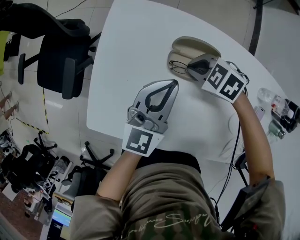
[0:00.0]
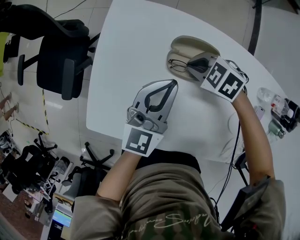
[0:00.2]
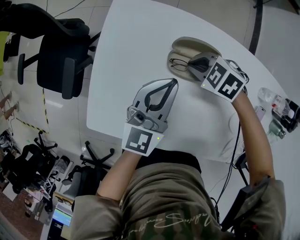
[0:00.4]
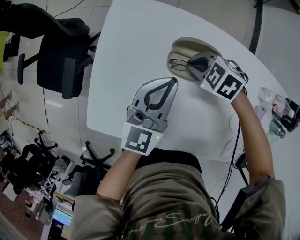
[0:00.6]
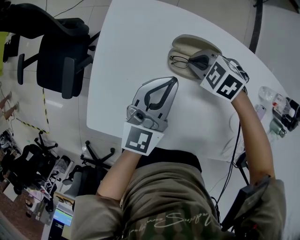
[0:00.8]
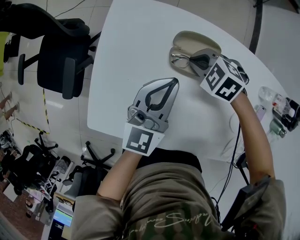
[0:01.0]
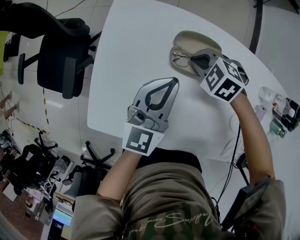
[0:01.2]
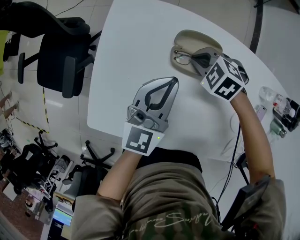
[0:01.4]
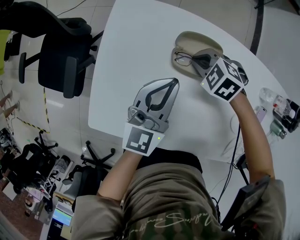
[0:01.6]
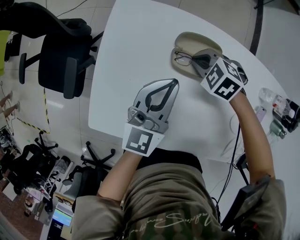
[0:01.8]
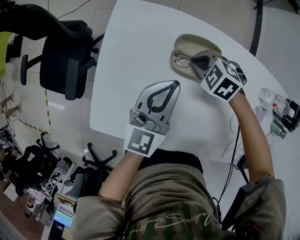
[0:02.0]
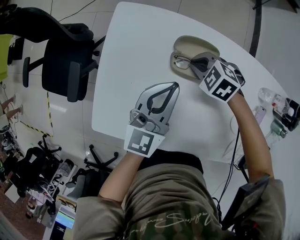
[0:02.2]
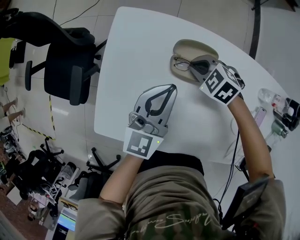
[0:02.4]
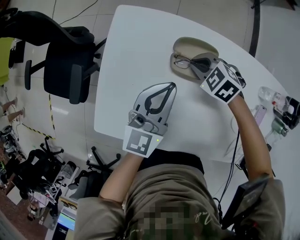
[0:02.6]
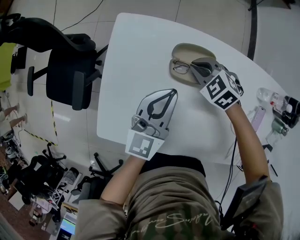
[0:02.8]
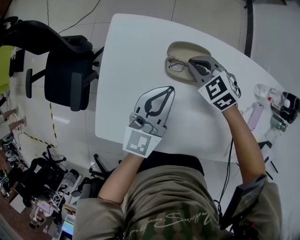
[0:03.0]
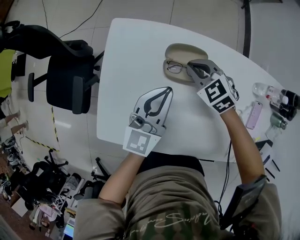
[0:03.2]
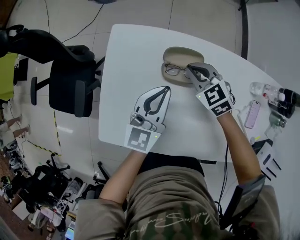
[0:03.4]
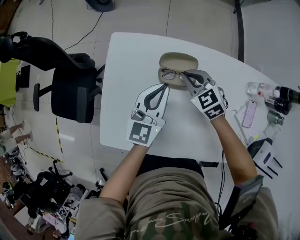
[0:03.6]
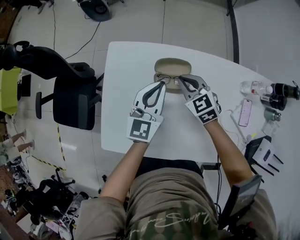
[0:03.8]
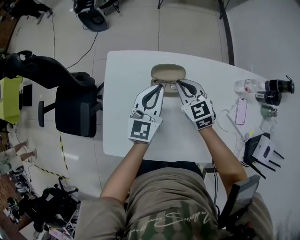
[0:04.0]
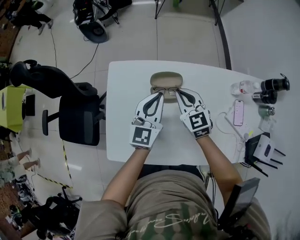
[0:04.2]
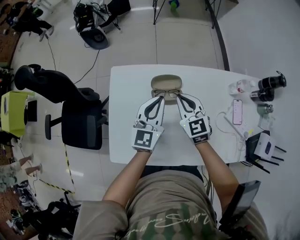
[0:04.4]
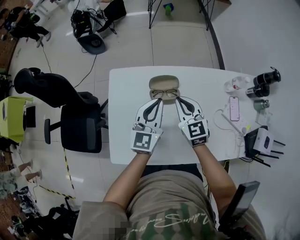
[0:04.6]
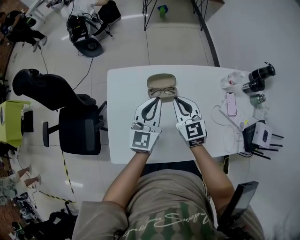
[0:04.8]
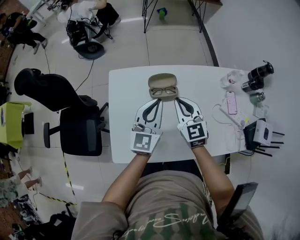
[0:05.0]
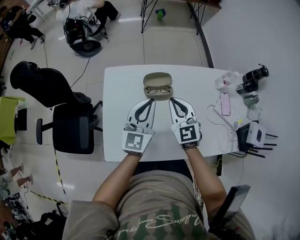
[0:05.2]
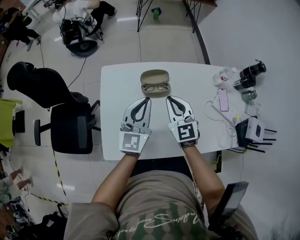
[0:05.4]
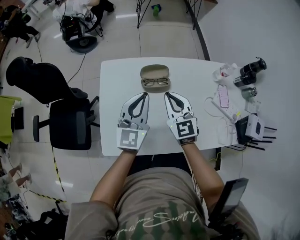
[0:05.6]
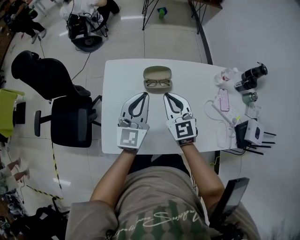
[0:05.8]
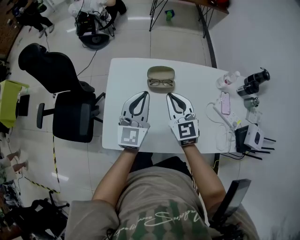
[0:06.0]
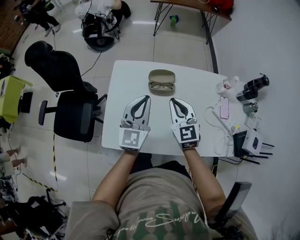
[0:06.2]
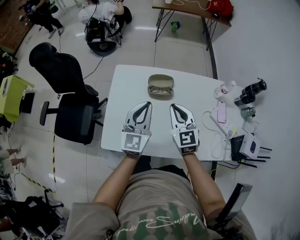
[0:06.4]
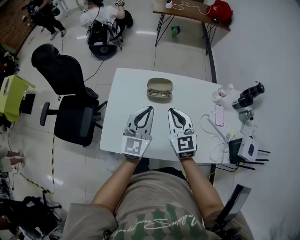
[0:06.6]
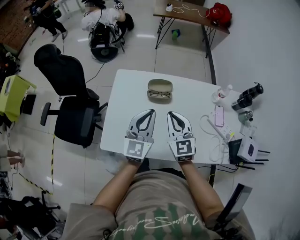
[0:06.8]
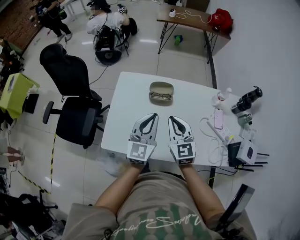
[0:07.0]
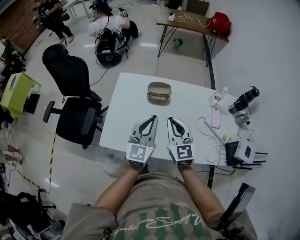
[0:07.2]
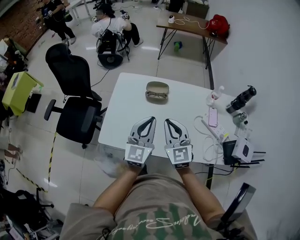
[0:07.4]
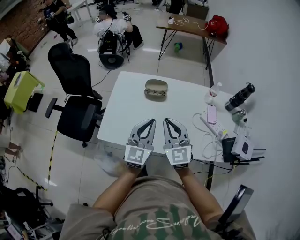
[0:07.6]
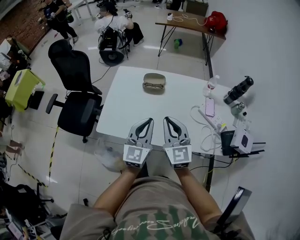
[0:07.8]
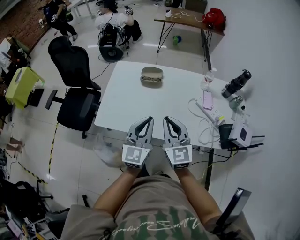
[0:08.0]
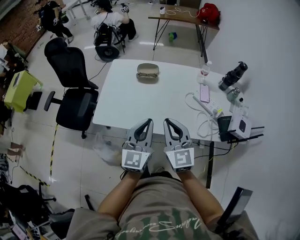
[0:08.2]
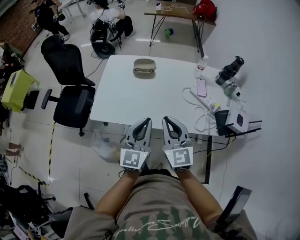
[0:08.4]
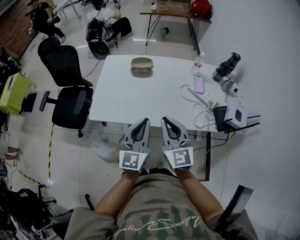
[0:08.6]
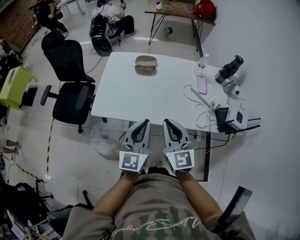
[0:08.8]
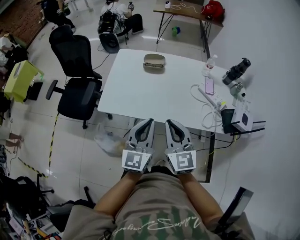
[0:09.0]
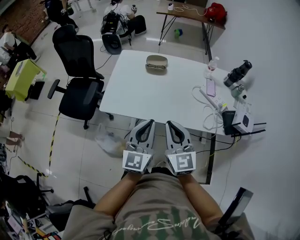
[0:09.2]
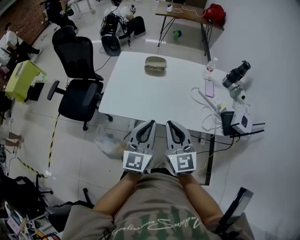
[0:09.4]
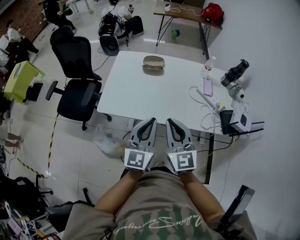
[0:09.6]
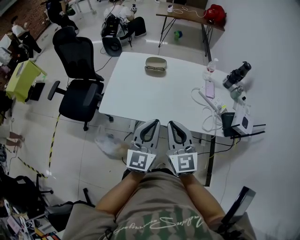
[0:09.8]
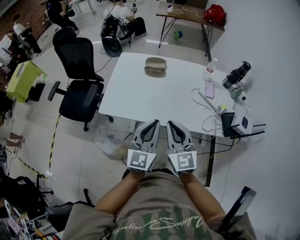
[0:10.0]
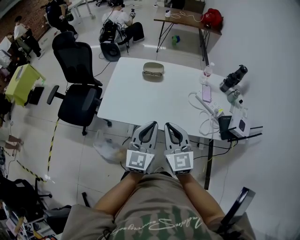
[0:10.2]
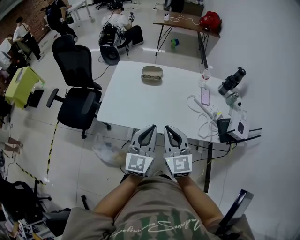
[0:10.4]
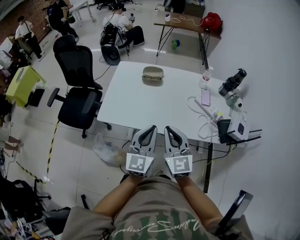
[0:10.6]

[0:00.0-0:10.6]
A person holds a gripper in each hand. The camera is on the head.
0:00.0 to 0:01.6: The grippers stay close to where they were, moving slightly.
0:01.6 to 0:03.0: The right gripper moves upward, about 5 cm, and rotates some 20 degrees.
0:03.0 to 0:04.6: The left gripper shifts some 10 cm upward. Meanwhile the right gripper shifts some 15 cm upward and backward, and swivels roughly 50 degrees.
0:04.6 to 0:06.0: The right gripper heads backward and upward, covering some 10 cm. Meanwhile the left gripper shifts approximately 5 cm backward.
0:06.0 to 0:07.6: The right gripper travels backward by about 20 cm. The left gripper goes about 20 cm backward and to the right.
0:07.6 to 0:09.0: Both grippers move backward, some 15 cm.
0:09.0 to 0:10.6: The grippers make only small movements.

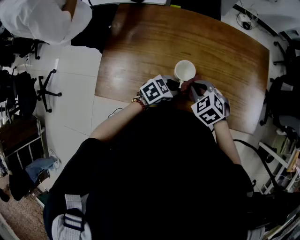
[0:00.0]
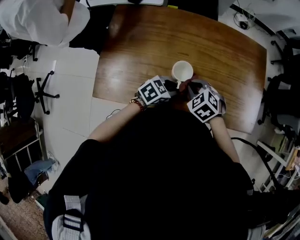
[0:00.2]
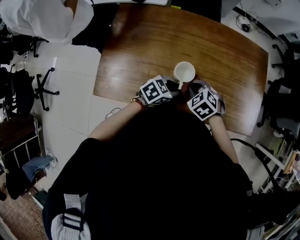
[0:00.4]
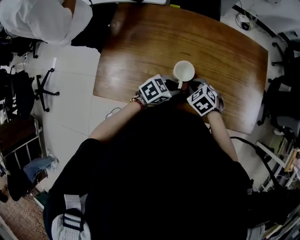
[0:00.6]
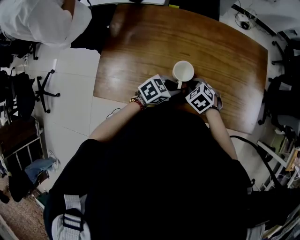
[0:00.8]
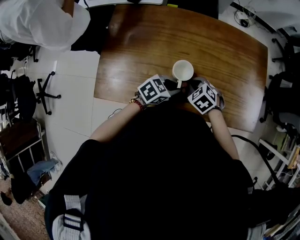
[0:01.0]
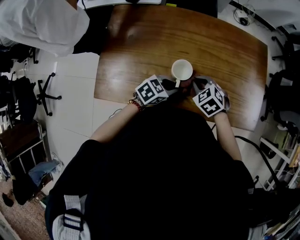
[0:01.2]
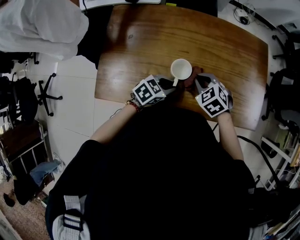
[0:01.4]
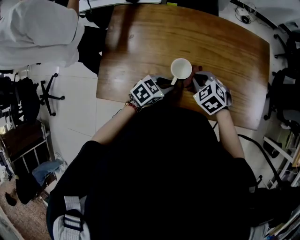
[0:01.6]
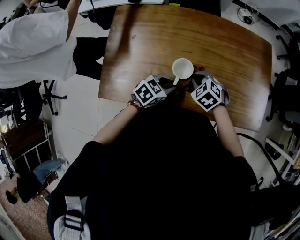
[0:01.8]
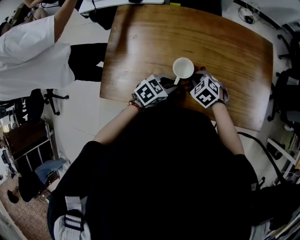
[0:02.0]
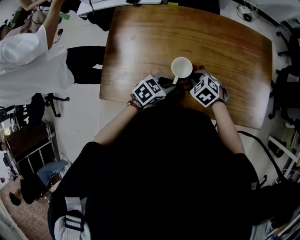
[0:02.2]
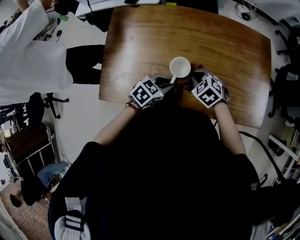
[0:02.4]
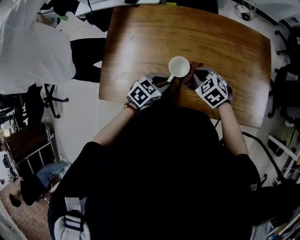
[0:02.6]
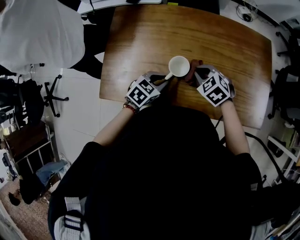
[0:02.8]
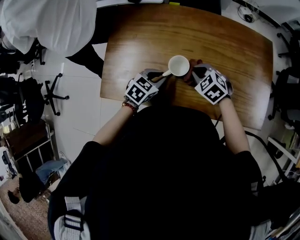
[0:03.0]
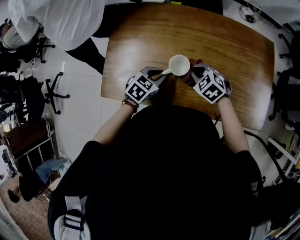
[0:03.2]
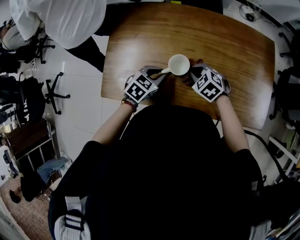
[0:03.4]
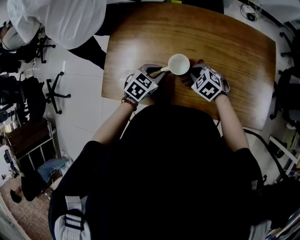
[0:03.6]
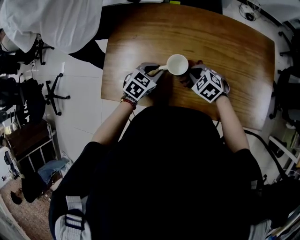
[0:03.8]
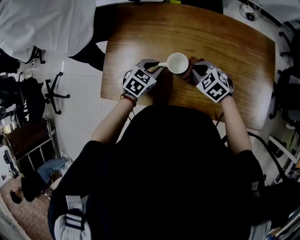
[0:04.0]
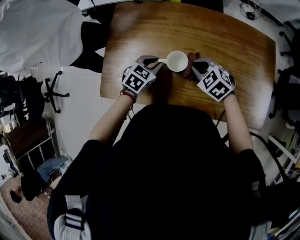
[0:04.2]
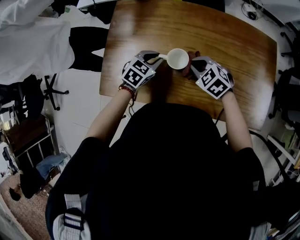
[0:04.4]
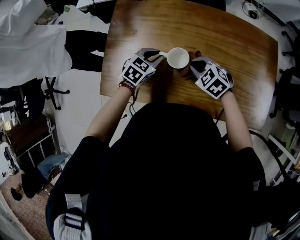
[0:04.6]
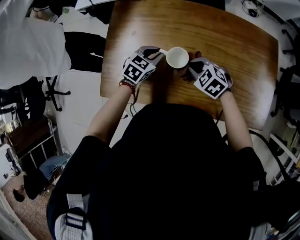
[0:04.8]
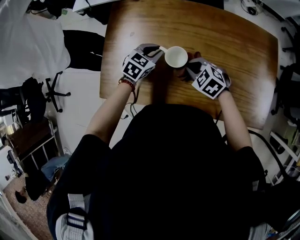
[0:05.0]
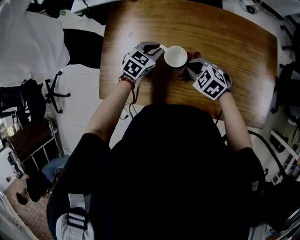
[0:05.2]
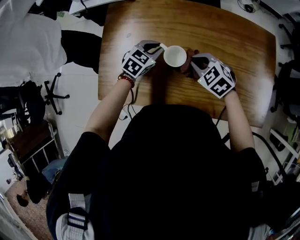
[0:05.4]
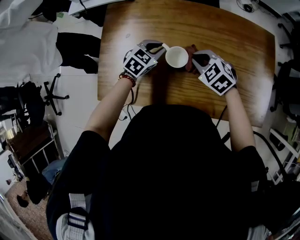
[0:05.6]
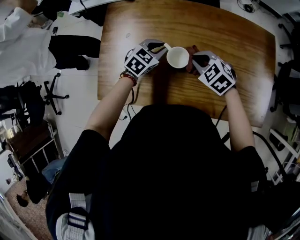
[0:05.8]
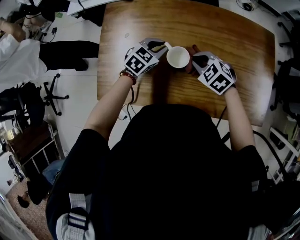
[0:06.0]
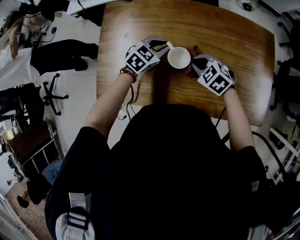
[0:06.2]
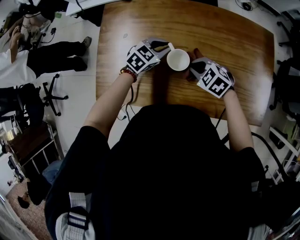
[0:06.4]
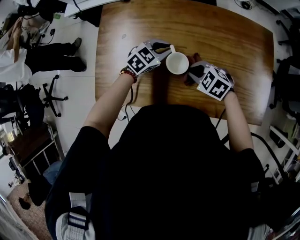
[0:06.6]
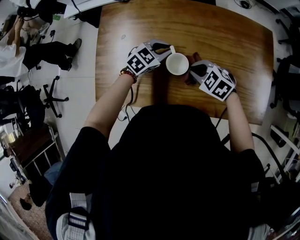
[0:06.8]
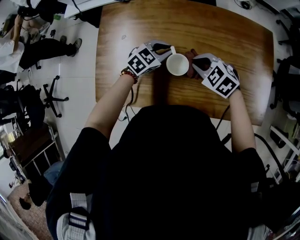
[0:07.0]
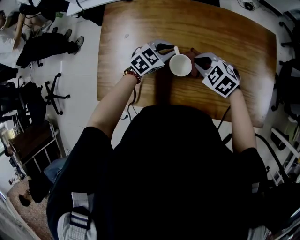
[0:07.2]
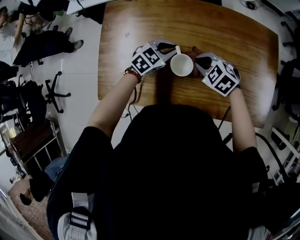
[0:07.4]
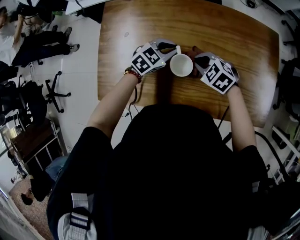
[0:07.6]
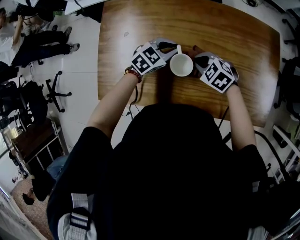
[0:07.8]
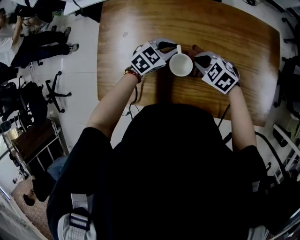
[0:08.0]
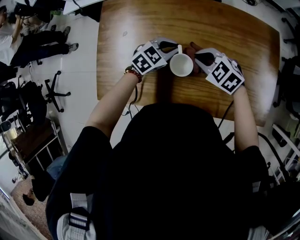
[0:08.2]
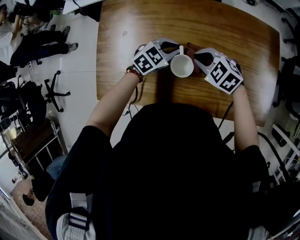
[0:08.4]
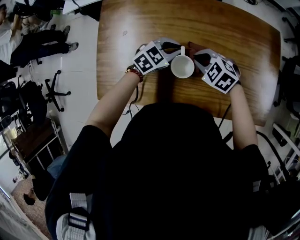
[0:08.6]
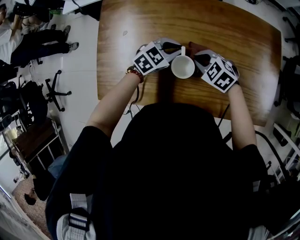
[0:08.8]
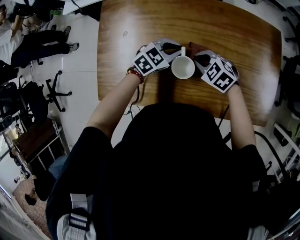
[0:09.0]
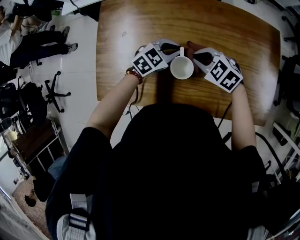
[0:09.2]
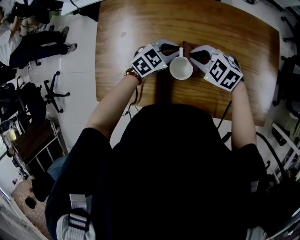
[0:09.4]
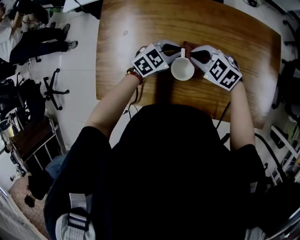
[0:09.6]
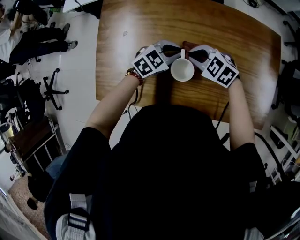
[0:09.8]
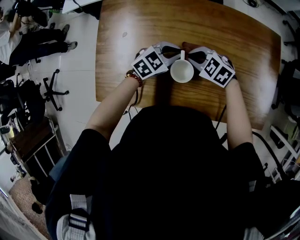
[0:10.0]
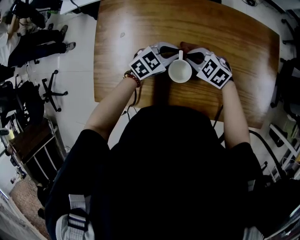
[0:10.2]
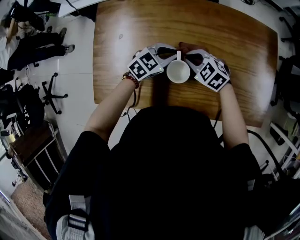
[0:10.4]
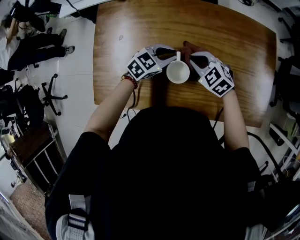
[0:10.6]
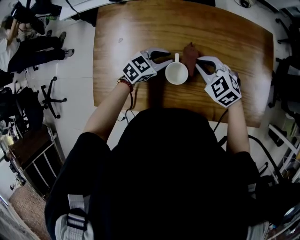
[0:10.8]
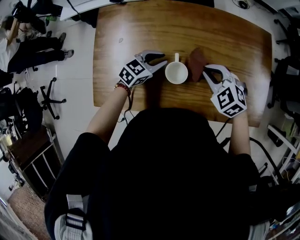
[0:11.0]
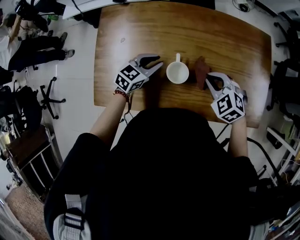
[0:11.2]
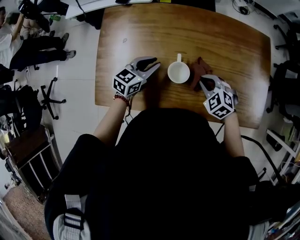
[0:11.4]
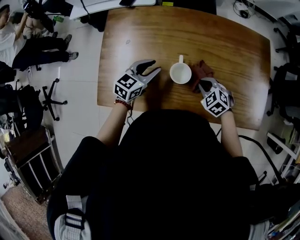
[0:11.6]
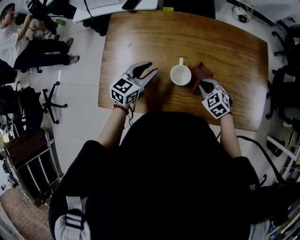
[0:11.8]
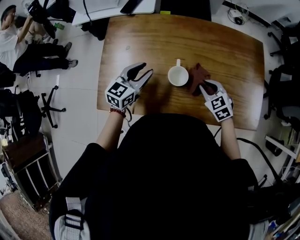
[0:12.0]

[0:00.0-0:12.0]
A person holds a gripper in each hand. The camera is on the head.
0:00.0 to 0:01.6: The right gripper travels downward and back again, about 10 cm each way.
0:01.6 to 0:03.0: The left gripper goes some 5 cm to the left.
0:03.0 to 0:04.4: The left gripper shifts roughly 10 cm forward.
0:04.4 to 0:06.0: The left gripper moves forward and to the right, approximately 10 cm.
0:06.0 to 0:07.6: The grippers move only a little.
0:07.6 to 0:10.4: The grippers make only small movements.
0:10.4 to 0:12.0: The left gripper changes place by some 15 cm, rotates about 30 degrees, and opens up. The right gripper swings up and down, roughly 10 cm each way, with 2 reversals, and changes its angle by roughly 20 degrees.

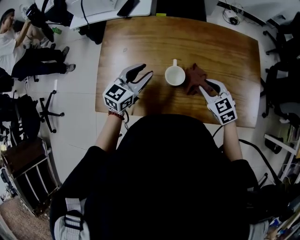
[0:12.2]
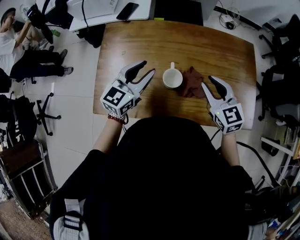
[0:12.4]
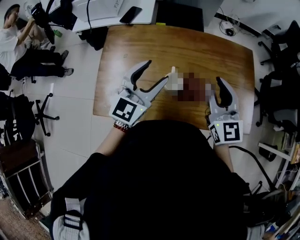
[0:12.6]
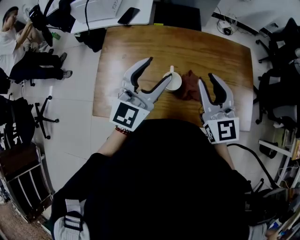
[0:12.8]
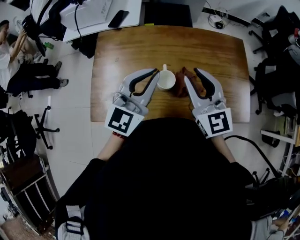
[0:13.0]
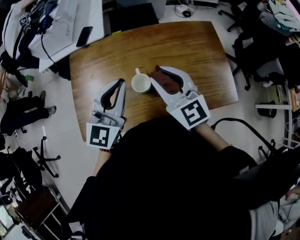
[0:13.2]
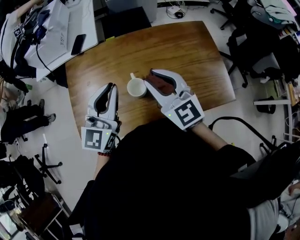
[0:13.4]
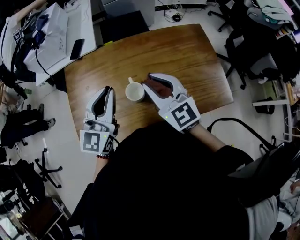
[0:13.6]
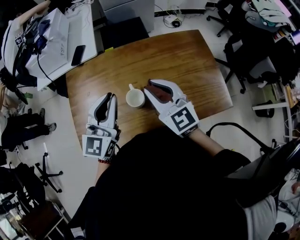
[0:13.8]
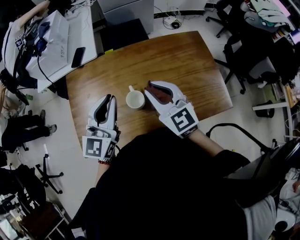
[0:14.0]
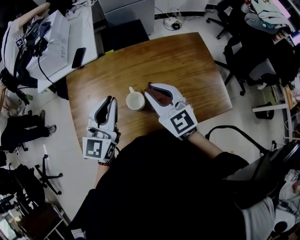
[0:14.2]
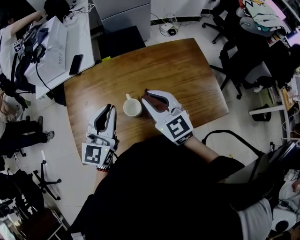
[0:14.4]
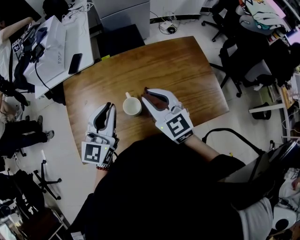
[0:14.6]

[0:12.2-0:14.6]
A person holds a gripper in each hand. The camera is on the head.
0:12.2 to 0:13.4: The two grippers go approximately 15 cm upward. The left gripper turns by approximately 20 degrees, and closes its fingers, while the right gripper angles its fingers upward, by approximately 30 degrees.
0:13.4 to 0:14.6: The grippers move only a little.
